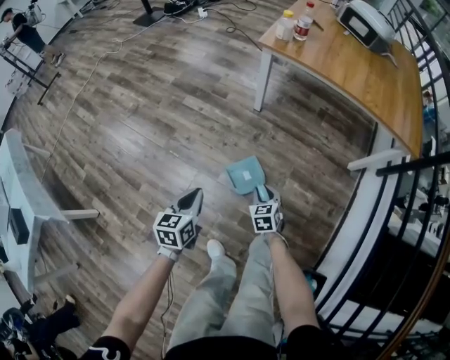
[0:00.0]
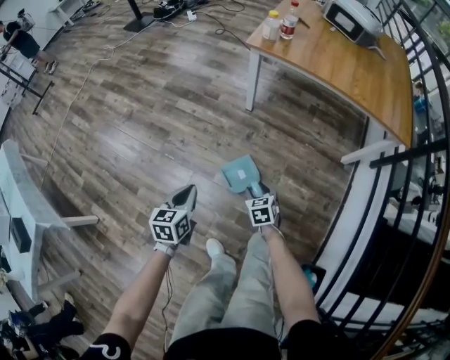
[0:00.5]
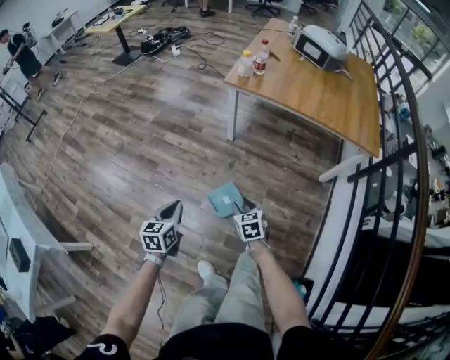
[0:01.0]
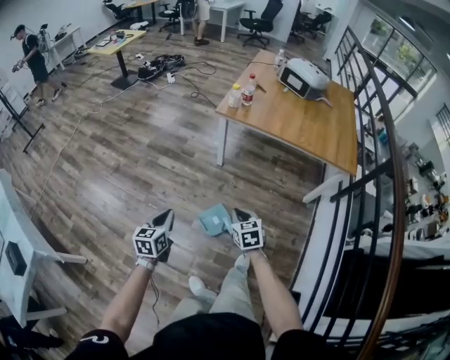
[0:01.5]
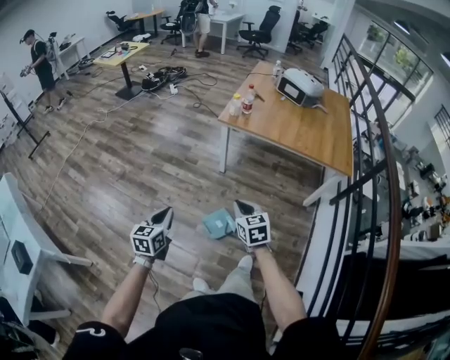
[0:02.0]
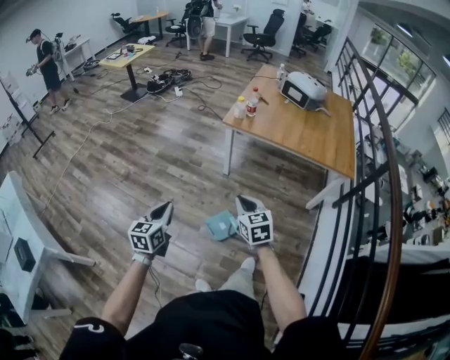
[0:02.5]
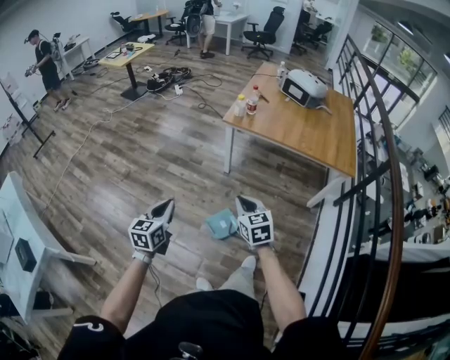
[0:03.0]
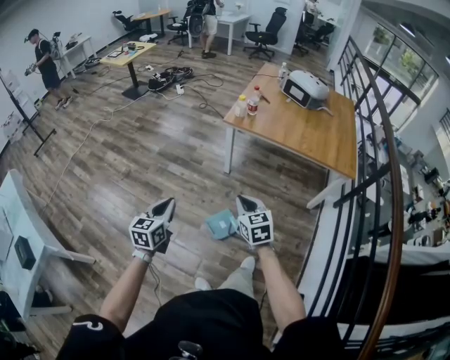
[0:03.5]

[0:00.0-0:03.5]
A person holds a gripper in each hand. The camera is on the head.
0:00.0 to 0:02.0: The left gripper is displaced upward by approximately 25 cm, while the right gripper shifts approximately 40 cm upward, and closes up.
0:02.0 to 0:03.5: The grippers make only small movements.

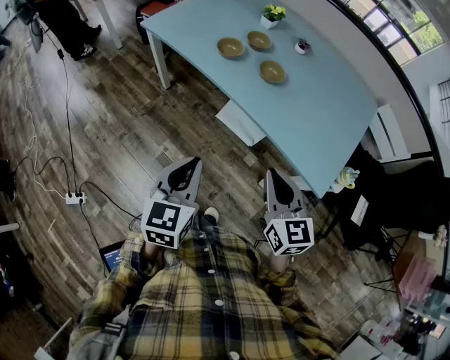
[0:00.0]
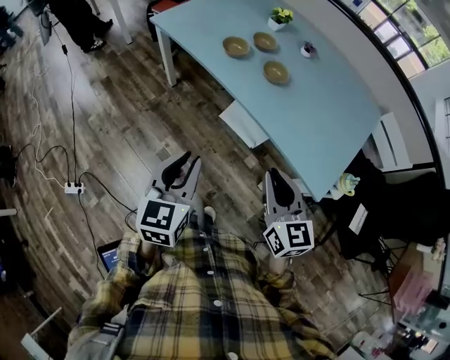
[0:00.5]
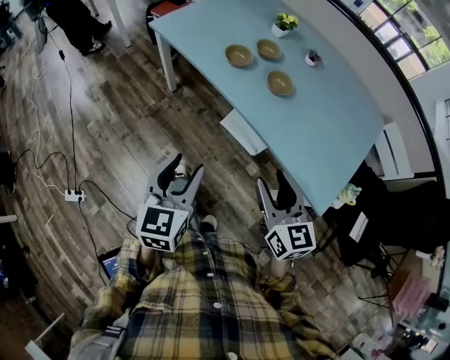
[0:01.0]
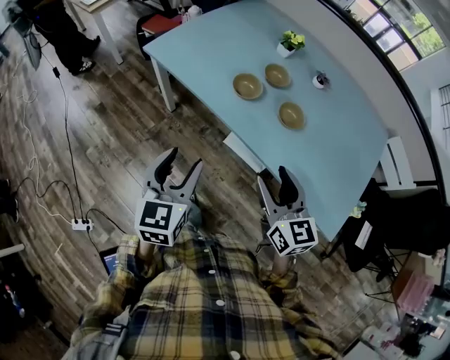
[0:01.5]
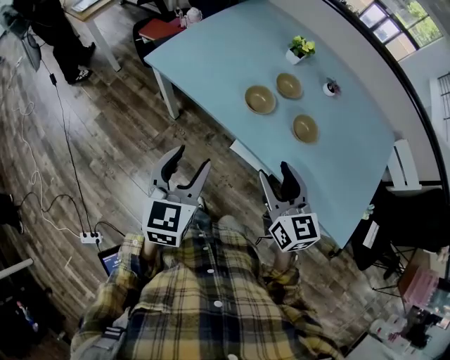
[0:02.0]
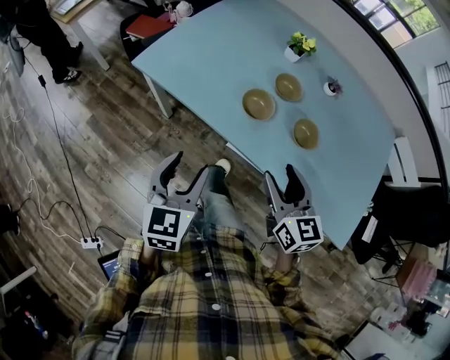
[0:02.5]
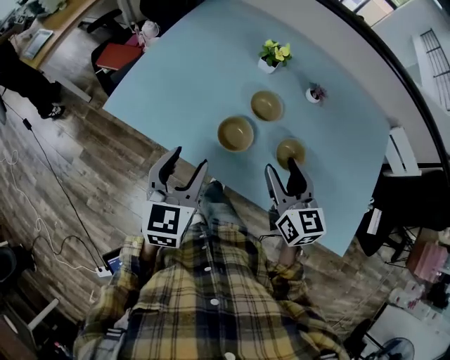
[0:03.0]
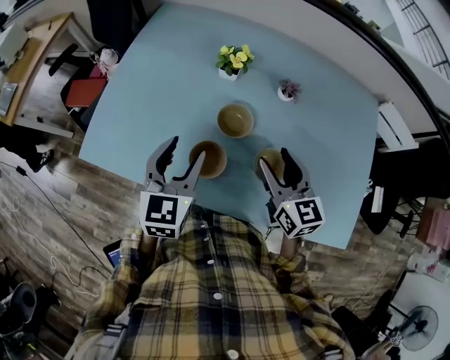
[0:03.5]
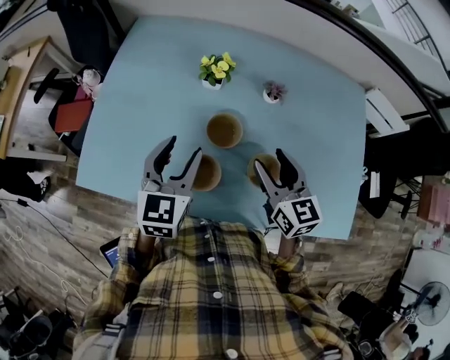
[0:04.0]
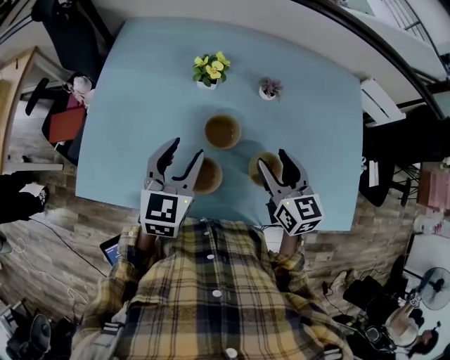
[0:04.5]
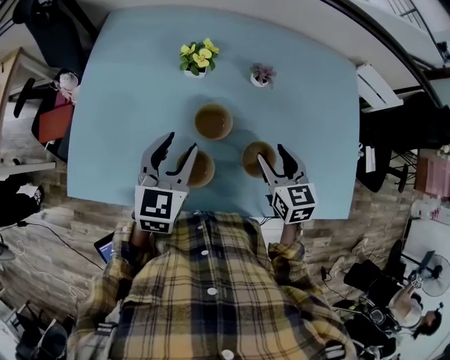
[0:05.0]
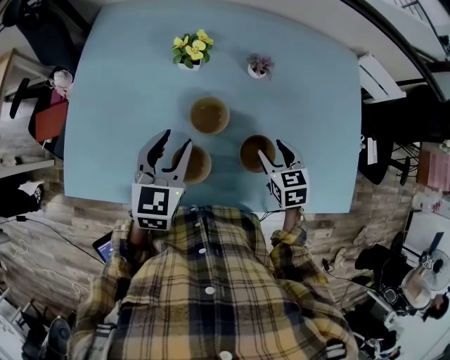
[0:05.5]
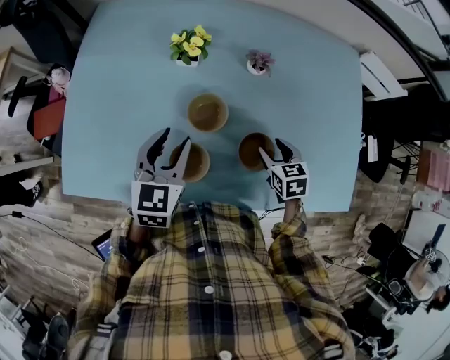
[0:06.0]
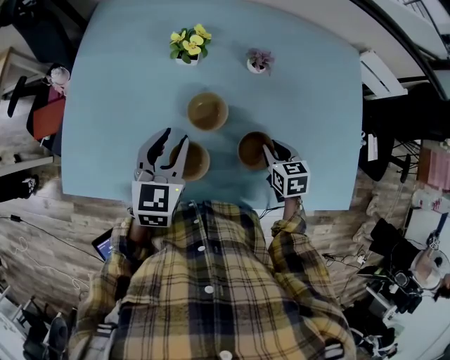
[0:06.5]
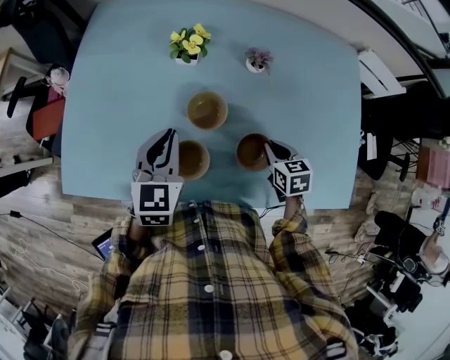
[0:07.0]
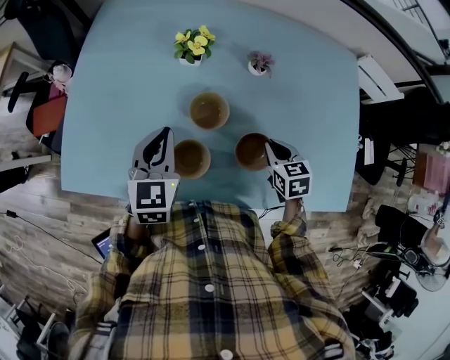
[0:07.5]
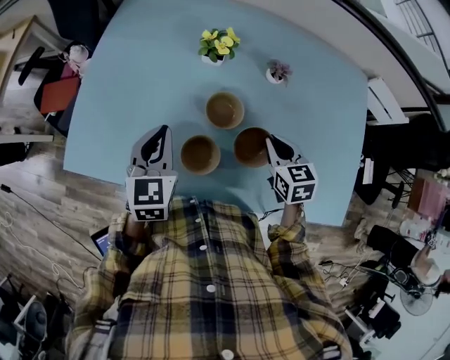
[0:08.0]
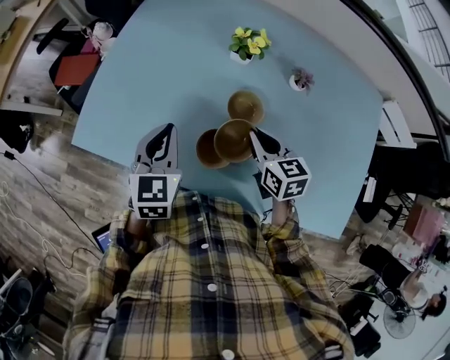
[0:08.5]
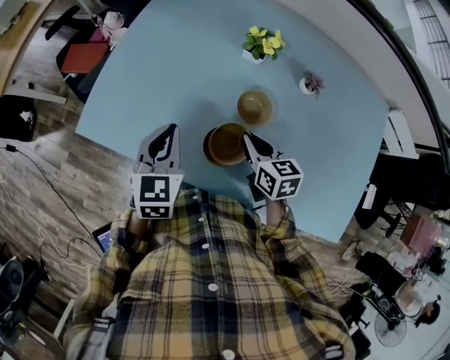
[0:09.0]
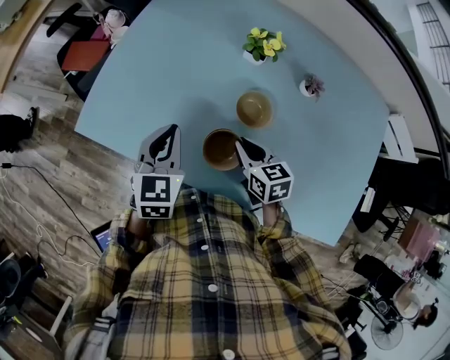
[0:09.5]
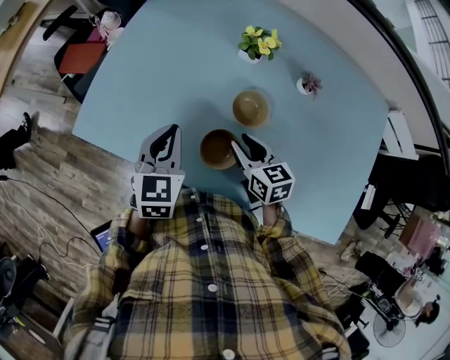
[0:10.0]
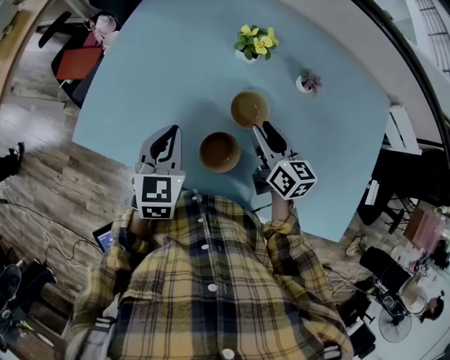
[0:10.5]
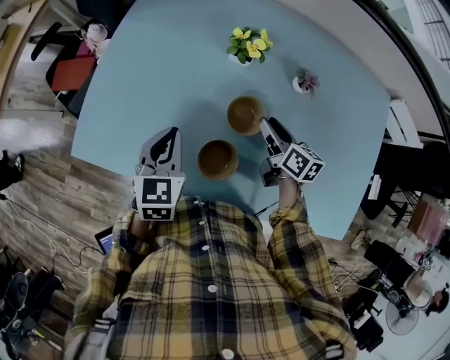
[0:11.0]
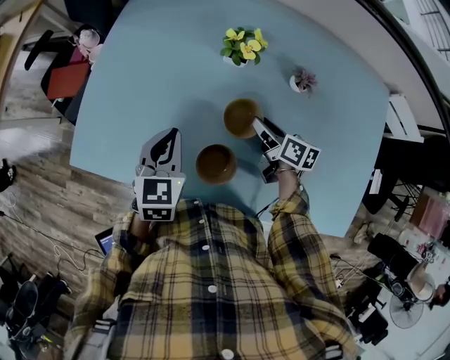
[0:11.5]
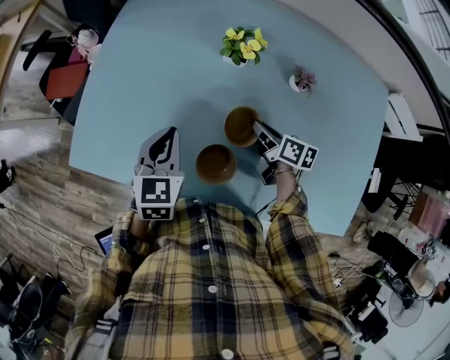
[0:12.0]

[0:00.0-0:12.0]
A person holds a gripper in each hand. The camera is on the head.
0:00.0 to 0:02.0: The two grippers go some 30 cm forward and to the left. The left gripper opens. Meanwhile the right gripper opens.
0:02.0 to 0:04.0: The left gripper ends up approximately 40 cm from where it was, and turns by some 30 degrees. The right gripper changes place by about 30 cm, and rotates approximately 20 degrees.
0:04.0 to 0:06.0: The right gripper goes some 20 cm downward and to the right, and tips its fingers downward by some 30 degrees; the left gripper is displaced downward by approximately 5 cm.
0:06.0 to 0:08.0: The left gripper travels to the left by roughly 5 cm, and closes; the right gripper is displaced upward and to the left by approximately 10 cm, and closes up.
0:08.0 to 0:10.0: The right gripper moves to the left, approximately 15 cm, swivels approximately 20 degrees, and opens its fingers. Meanwhile the left gripper changes place by about 5 cm.
0:10.0 to 0:12.0: The left gripper goes about 5 cm forward. Meanwhile the right gripper heads to the right, forward and downward, covering approximately 15 cm, and turns by roughly 40 degrees.

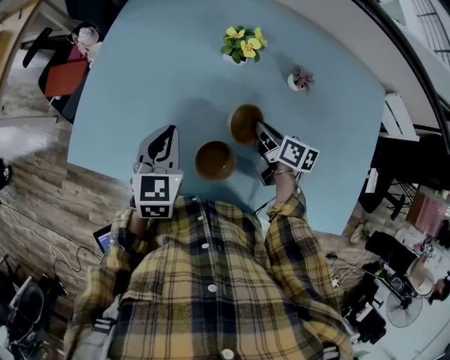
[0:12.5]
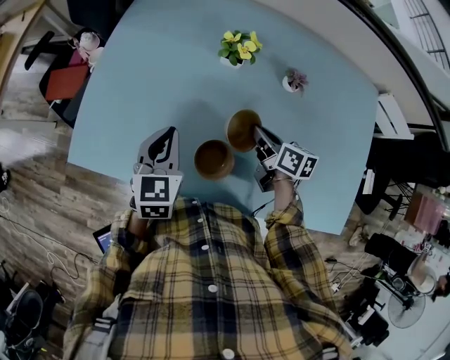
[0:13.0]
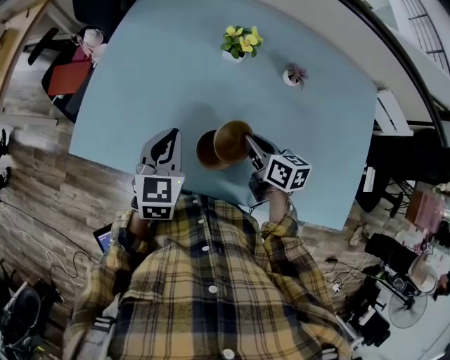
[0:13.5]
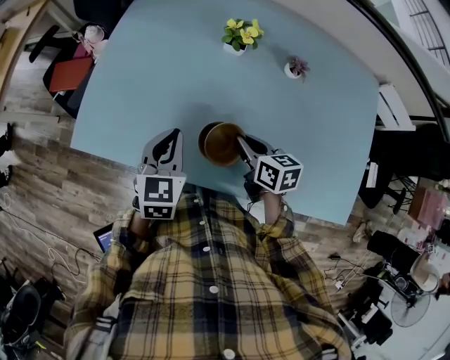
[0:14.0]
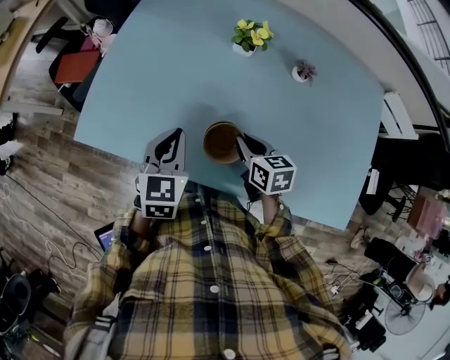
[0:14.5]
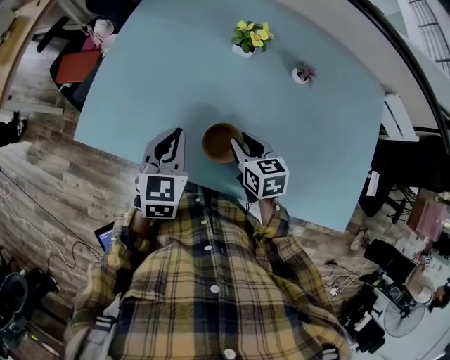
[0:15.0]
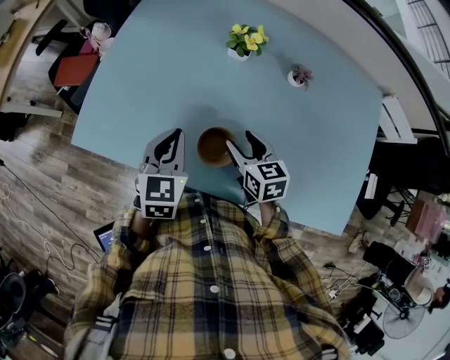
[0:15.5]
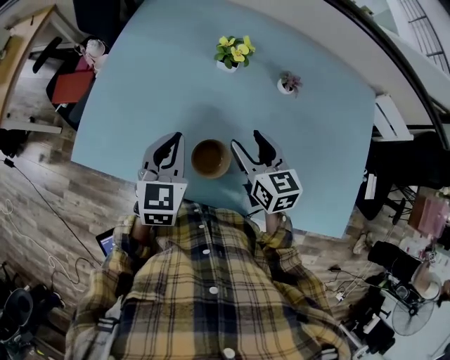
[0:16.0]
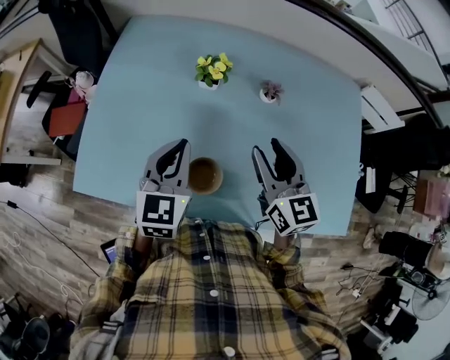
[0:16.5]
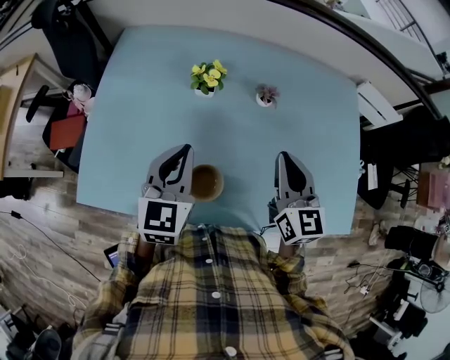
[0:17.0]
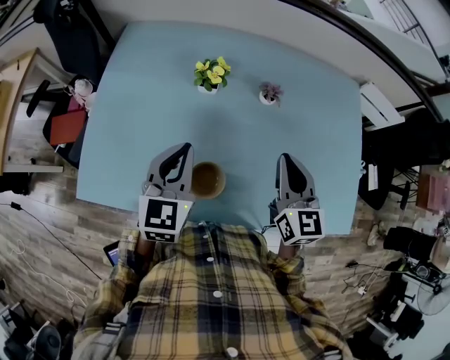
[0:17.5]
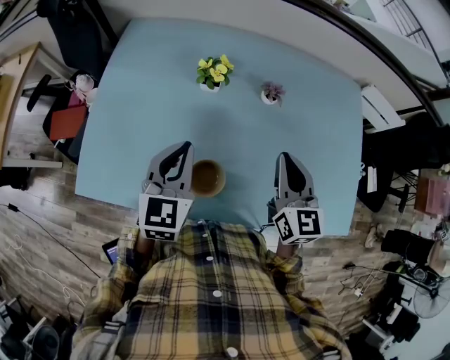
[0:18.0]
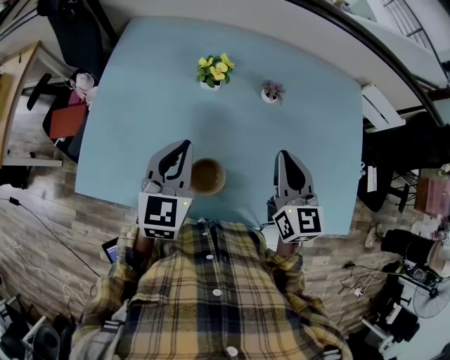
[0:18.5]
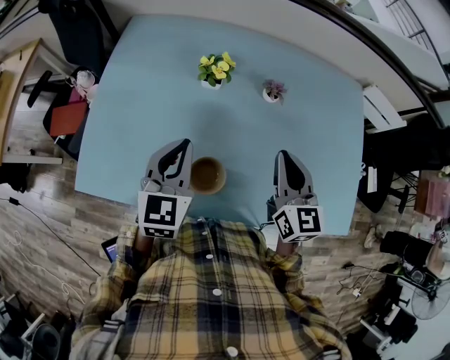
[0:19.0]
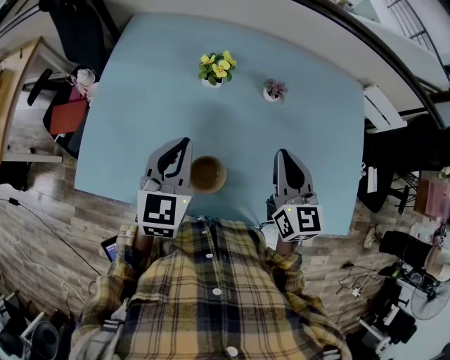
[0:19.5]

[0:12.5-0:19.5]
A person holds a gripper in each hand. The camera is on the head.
0:12.5 to 0:14.5: The left gripper goes roughly 5 cm backward. The right gripper heads to the left and backward, covering some 15 cm, and turns by approximately 30 degrees.
0:14.5 to 0:16.0: The right gripper moves upward, some 10 cm, rotates roughly 20 degrees, and opens. The left gripper ends up about 5 cm from where it was.
0:16.0 to 0:17.5: The left gripper travels upward by some 5 cm. Meanwhile the right gripper is displaced to the right and upward by some 15 cm, changes its angle by roughly 30 degrees, and closes.
0:17.5 to 0:19.5: The grippers move only a little.

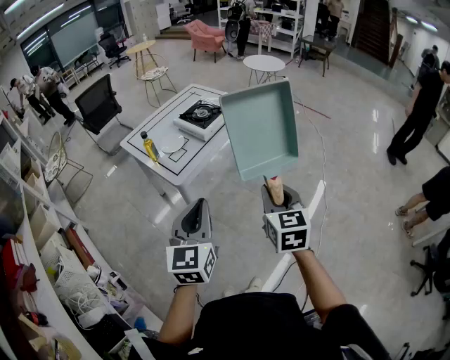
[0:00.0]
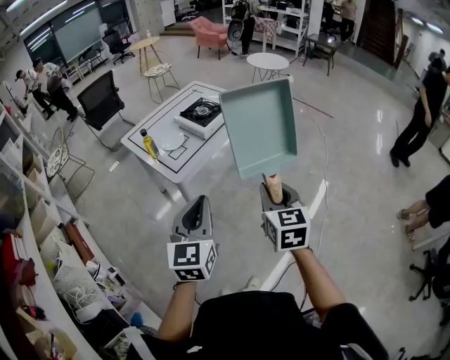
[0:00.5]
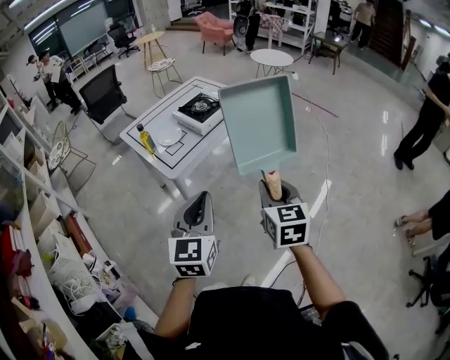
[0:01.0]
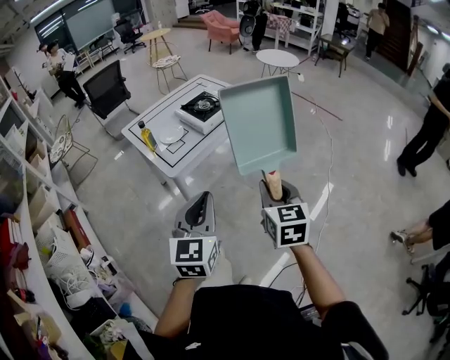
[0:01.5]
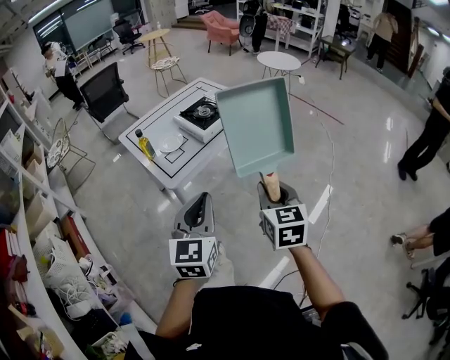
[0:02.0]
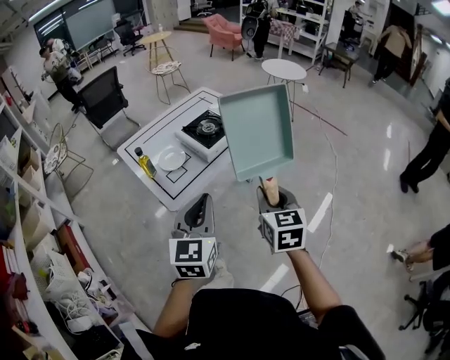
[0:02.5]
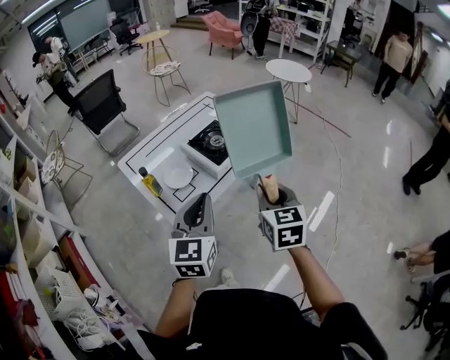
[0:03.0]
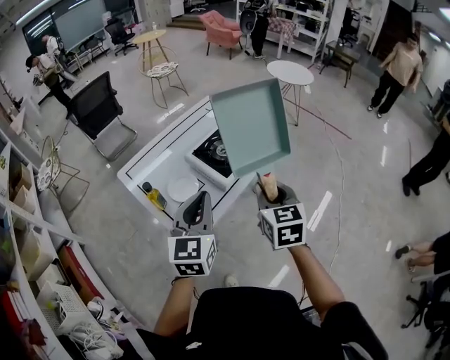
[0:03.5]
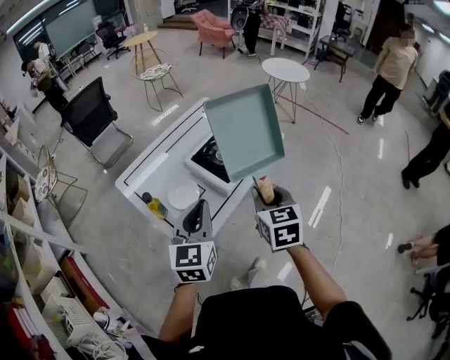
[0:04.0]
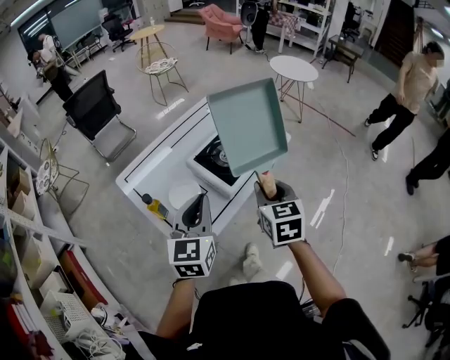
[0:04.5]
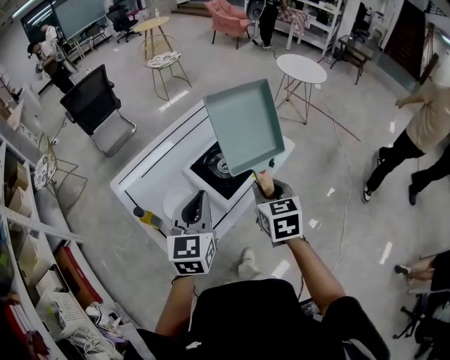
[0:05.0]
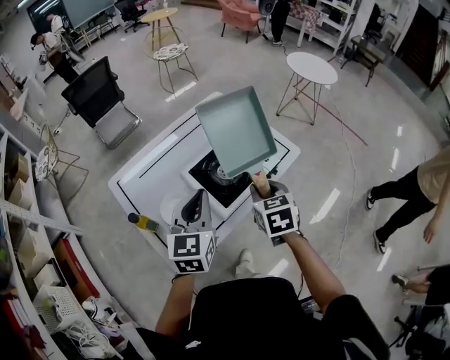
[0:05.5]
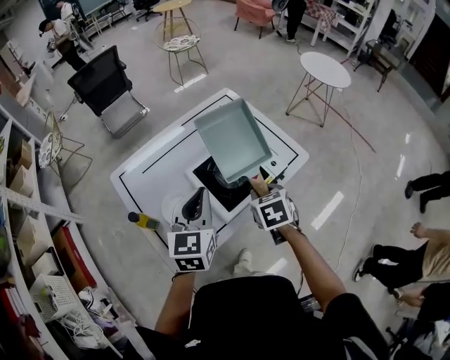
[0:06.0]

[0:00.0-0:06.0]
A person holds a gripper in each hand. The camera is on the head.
0:00.0 to 0:02.0: The left gripper goes approximately 10 cm forward and to the right. Meanwhile the right gripper heads forward, covering some 10 cm.
0:02.0 to 0:04.0: Both grippers travel together forward and to the left, approximately 35 cm.
0:04.0 to 0:06.0: The right gripper goes some 25 cm forward and downward, and rotates roughly 30 degrees, while the left gripper heads forward, covering roughly 20 cm.
